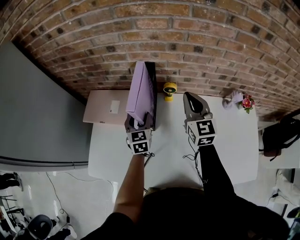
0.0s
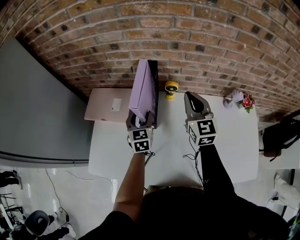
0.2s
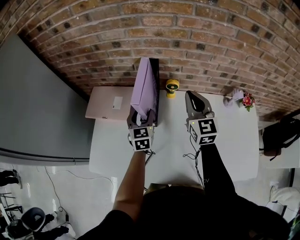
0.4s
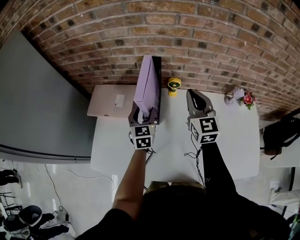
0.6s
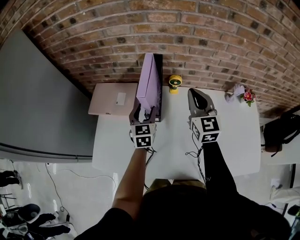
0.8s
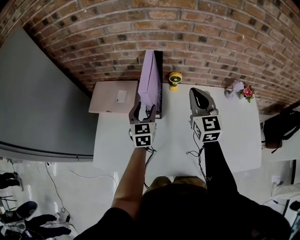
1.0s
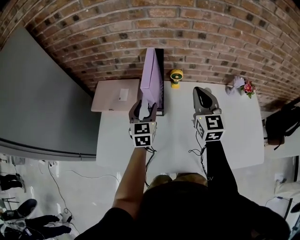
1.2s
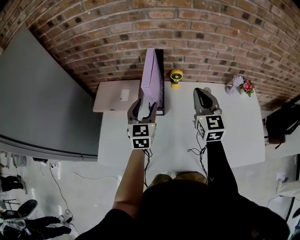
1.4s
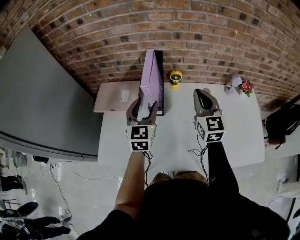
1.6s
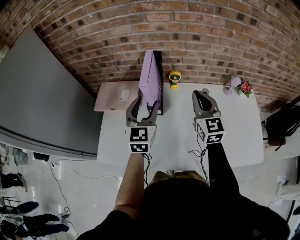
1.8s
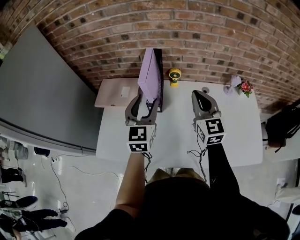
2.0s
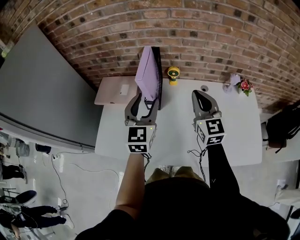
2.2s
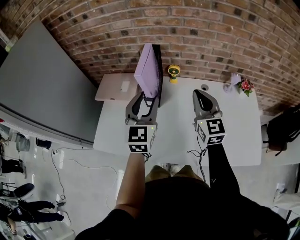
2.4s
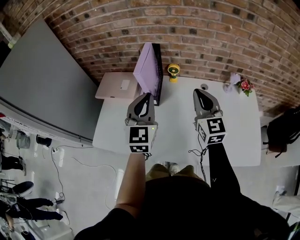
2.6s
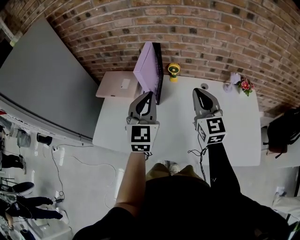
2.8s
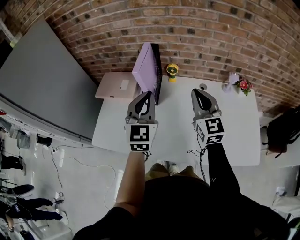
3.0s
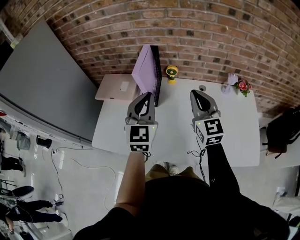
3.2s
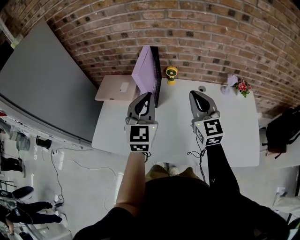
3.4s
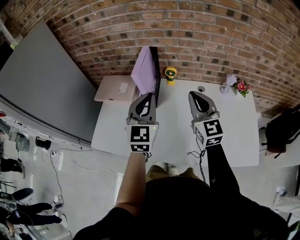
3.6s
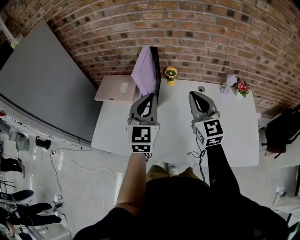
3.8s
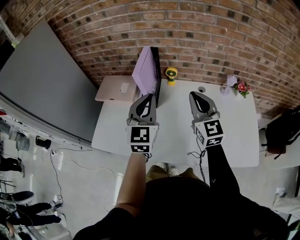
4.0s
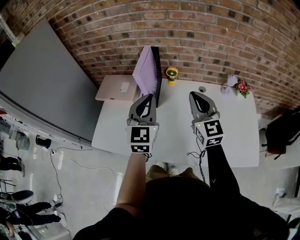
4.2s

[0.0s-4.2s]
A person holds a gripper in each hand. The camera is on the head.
0.0s to 1.4s: The right gripper goes about 10 cm backward. Meanwhile the left gripper goes about 10 cm upward and backward.
1.4s to 2.8s: The left gripper heads backward, upward and to the right, covering some 15 cm, and closes its fingers. Meanwhile the right gripper heads backward, covering roughly 10 cm.
2.8s to 4.2s: The grippers make only small movements.

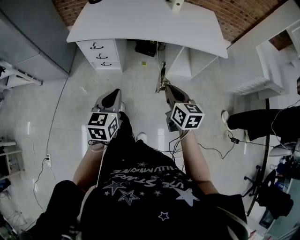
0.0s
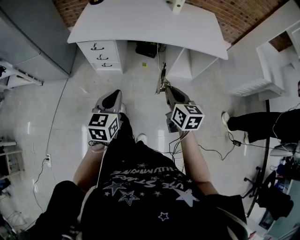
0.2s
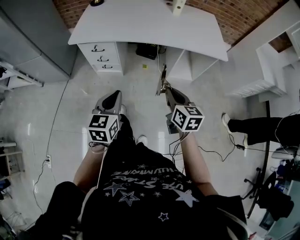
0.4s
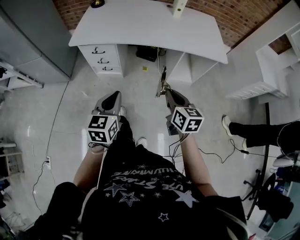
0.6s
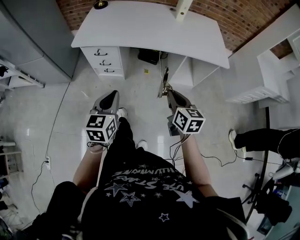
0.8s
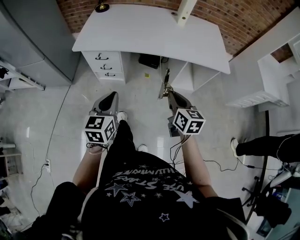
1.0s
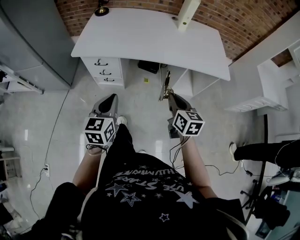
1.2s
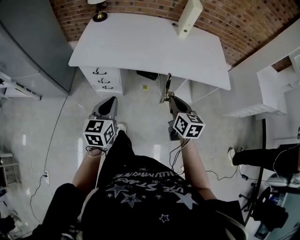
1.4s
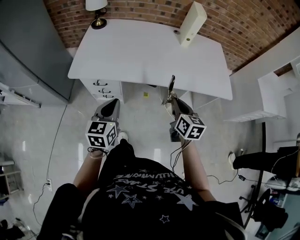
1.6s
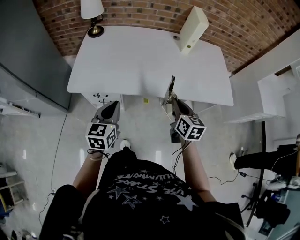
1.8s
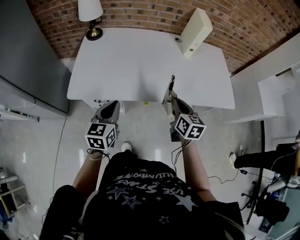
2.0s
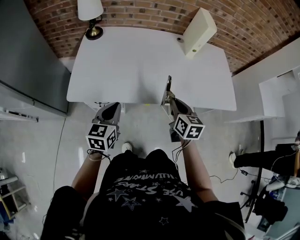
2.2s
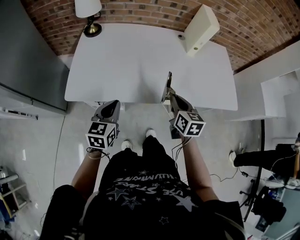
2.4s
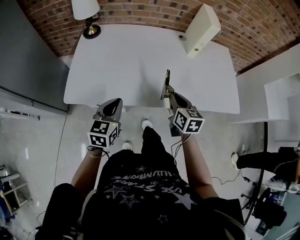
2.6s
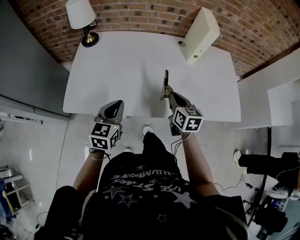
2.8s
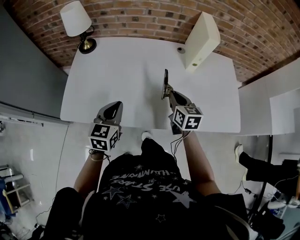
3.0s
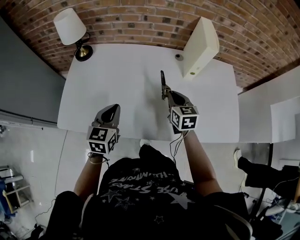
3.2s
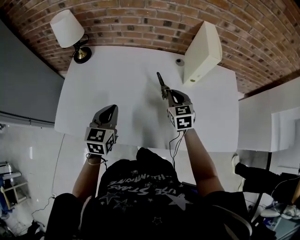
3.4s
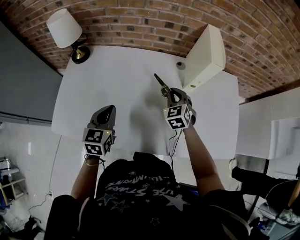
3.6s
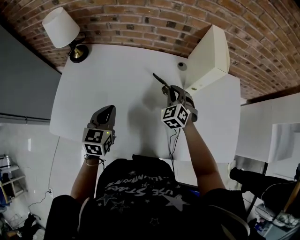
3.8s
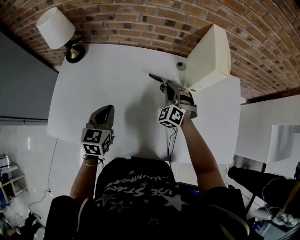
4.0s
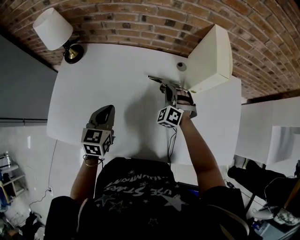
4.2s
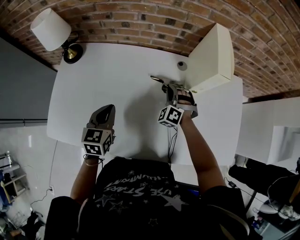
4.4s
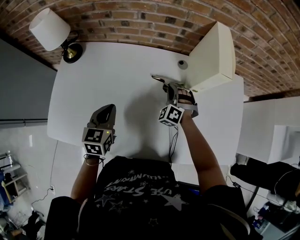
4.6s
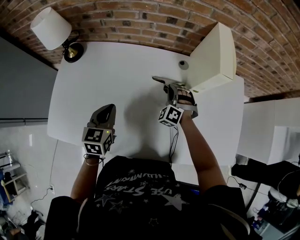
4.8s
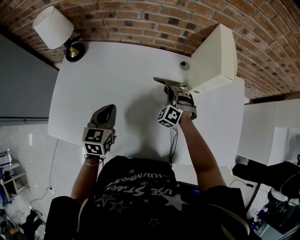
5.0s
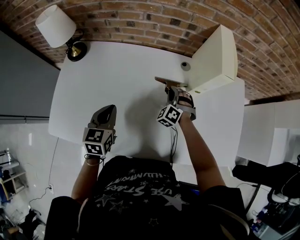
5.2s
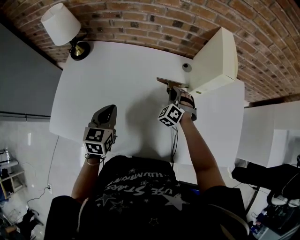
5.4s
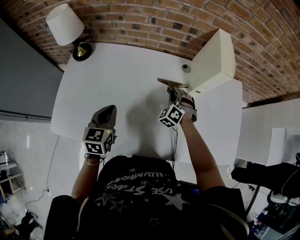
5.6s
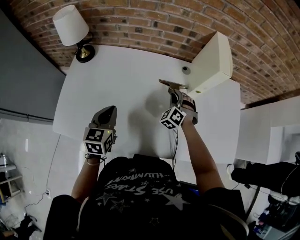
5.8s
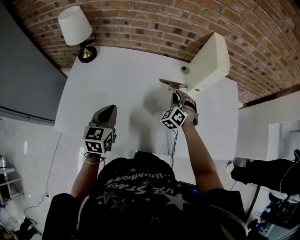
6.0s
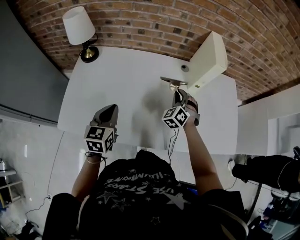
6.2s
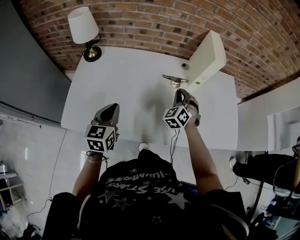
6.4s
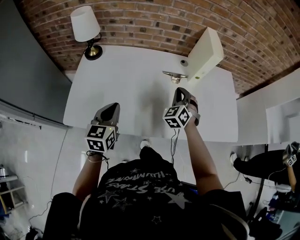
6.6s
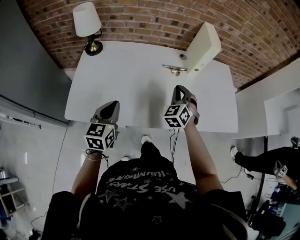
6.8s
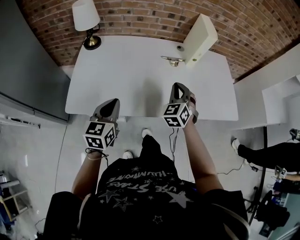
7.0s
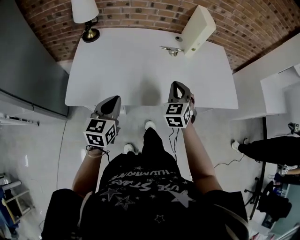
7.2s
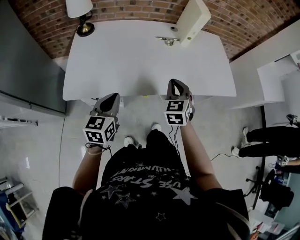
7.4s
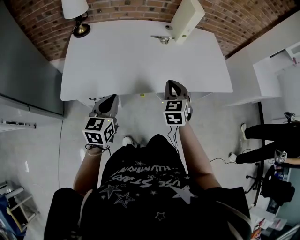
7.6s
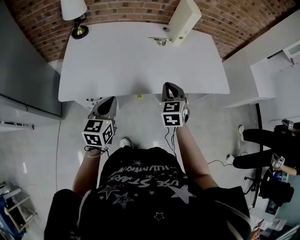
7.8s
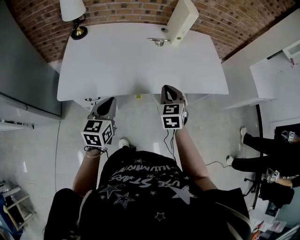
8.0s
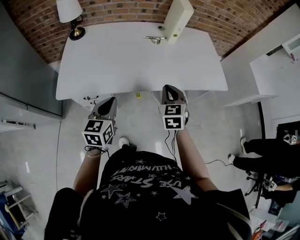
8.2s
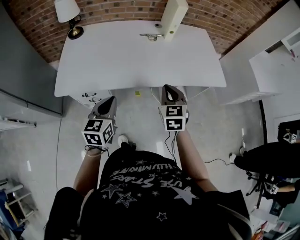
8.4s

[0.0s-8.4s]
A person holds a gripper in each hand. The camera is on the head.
0.0s to 1.4s: The right gripper is displaced forward by about 15 cm; the left gripper travels forward and to the left by roughly 15 cm.
1.4s to 2.8s: Both grippers travel together forward, roughly 30 cm.
2.8s to 4.2s: The grippers both shift forward by approximately 25 cm. The right gripper rolls counterclockwise, seen from behind, by some 80 degrees.
4.2s to 5.6s: The grippers make only small movements.
5.6s to 7.0s: The left gripper travels backward by roughly 20 cm, while the right gripper goes approximately 30 cm backward and upward, and changes its angle by about 30 degrees.
7.0s to 8.4s: The two grippers go roughly 20 cm backward and to the right. The right gripper turns by roughly 30 degrees.

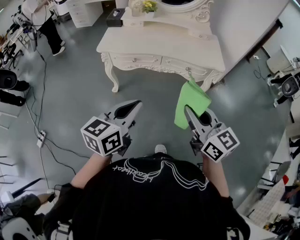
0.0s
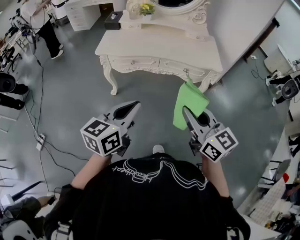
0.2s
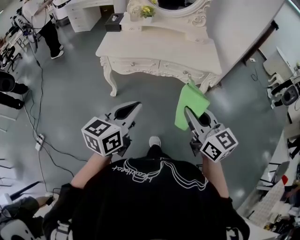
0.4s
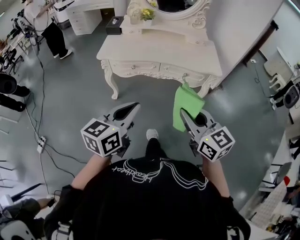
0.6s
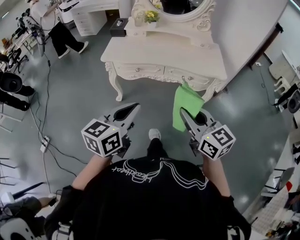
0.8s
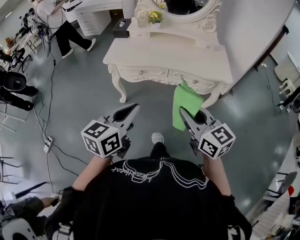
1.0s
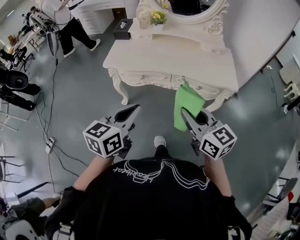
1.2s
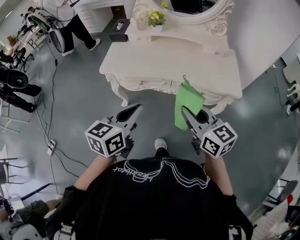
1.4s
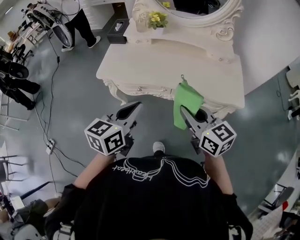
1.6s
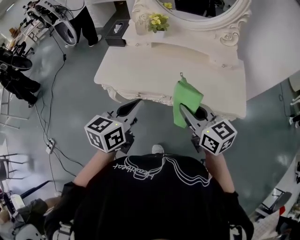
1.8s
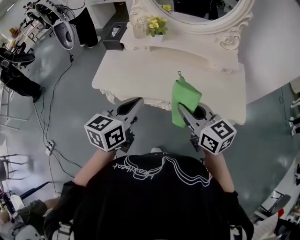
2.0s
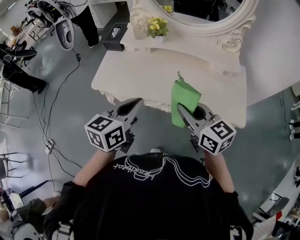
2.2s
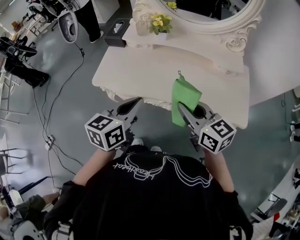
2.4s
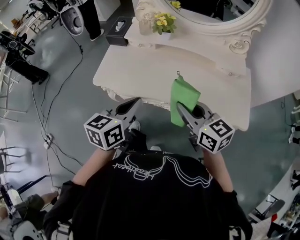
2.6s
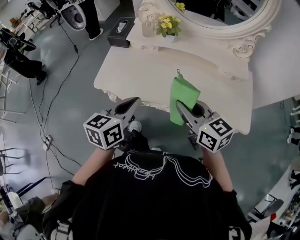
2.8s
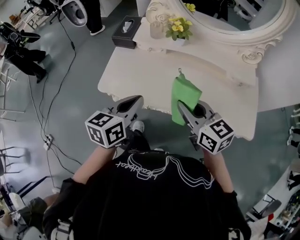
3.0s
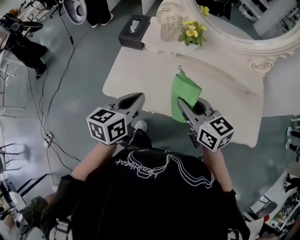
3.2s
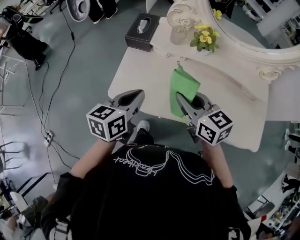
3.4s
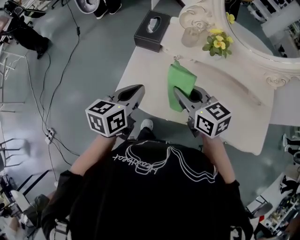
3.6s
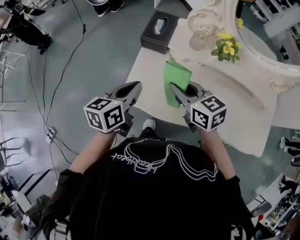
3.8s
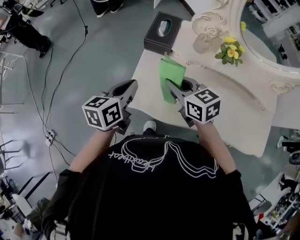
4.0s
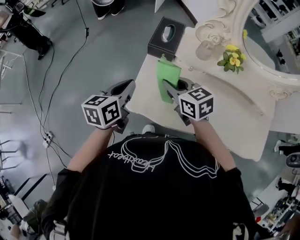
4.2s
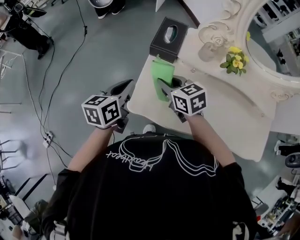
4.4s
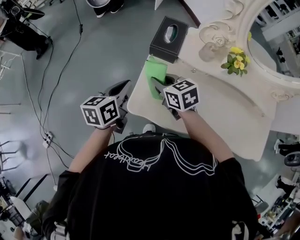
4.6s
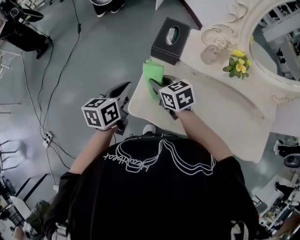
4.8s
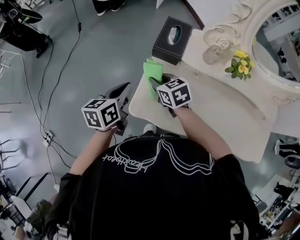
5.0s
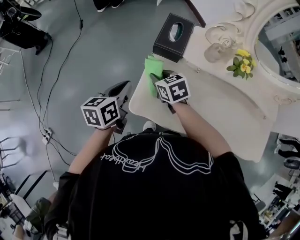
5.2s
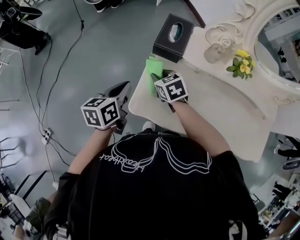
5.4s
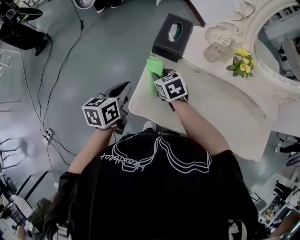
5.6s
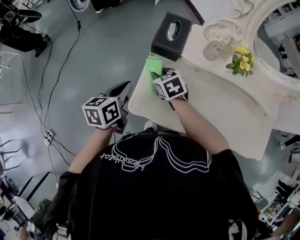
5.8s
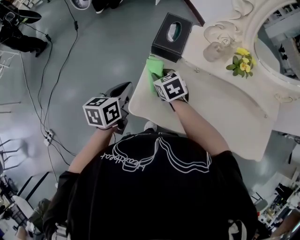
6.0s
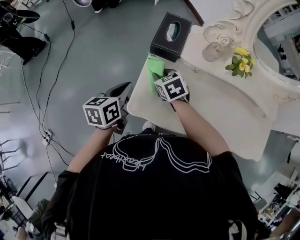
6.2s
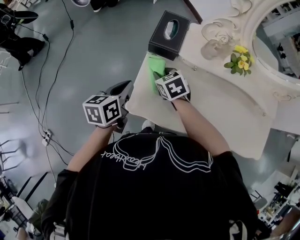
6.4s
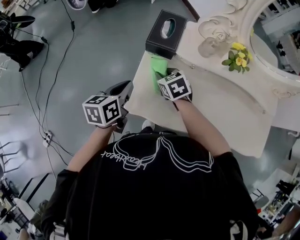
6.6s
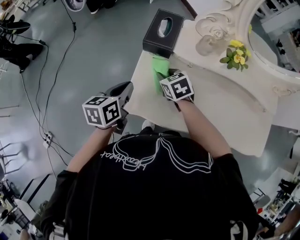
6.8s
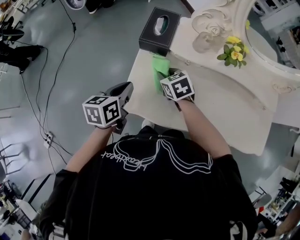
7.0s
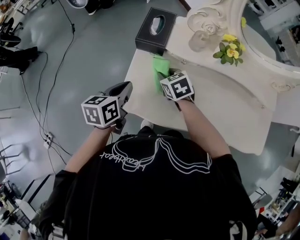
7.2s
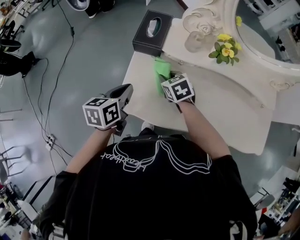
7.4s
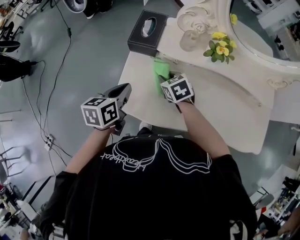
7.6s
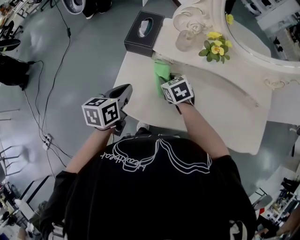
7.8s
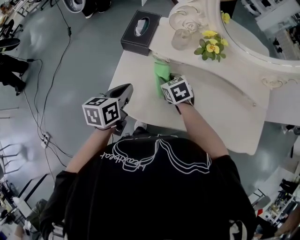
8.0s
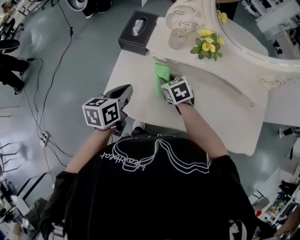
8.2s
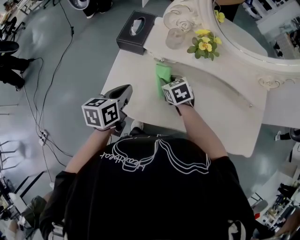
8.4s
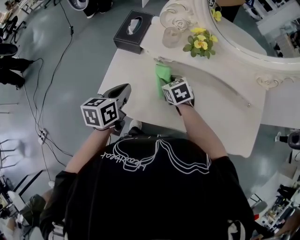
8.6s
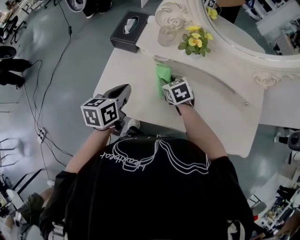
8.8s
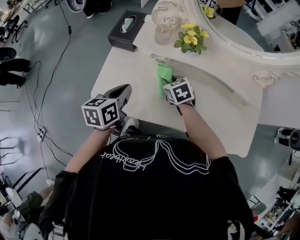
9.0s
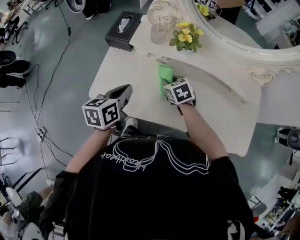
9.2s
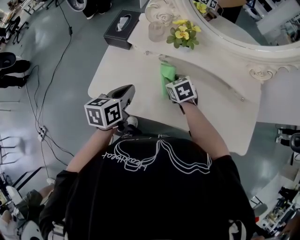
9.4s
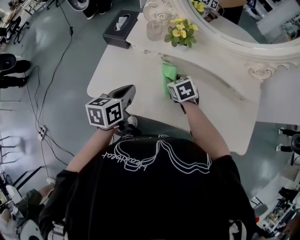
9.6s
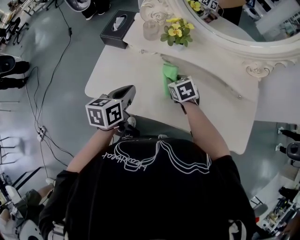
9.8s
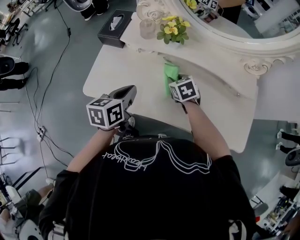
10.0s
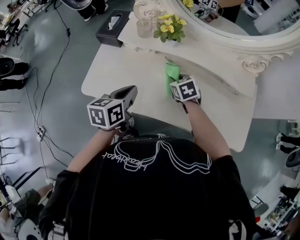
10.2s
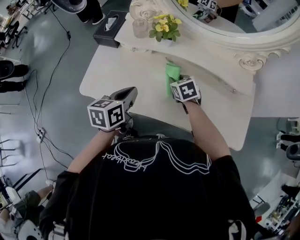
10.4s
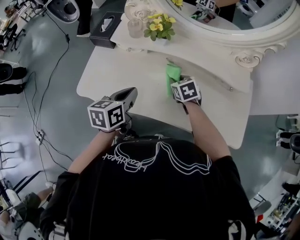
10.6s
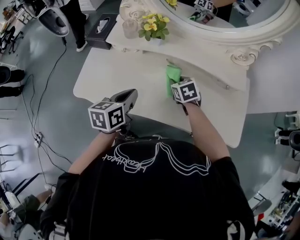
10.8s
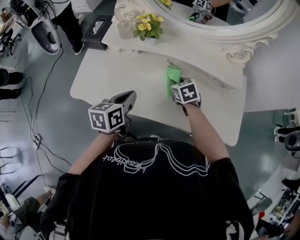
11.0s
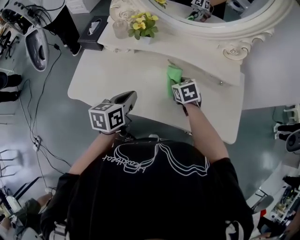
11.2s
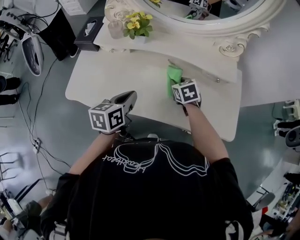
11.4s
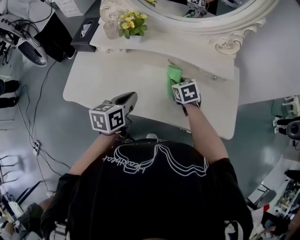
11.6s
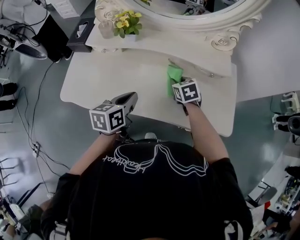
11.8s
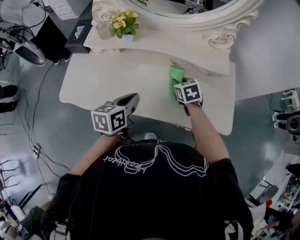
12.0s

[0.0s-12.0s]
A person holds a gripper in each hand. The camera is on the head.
0.0s to 1.6s: The grippers both shift forward by some 25 cm.
1.6s to 3.0s: The grippers both shift forward by about 20 cm.
3.0s to 4.4s: The right gripper moves forward, to the left and downward, some 40 cm. The left gripper heads to the left and forward, covering approximately 30 cm.
4.4s to 6.0s: The right gripper heads downward and forward, covering about 10 cm, while the left gripper changes place by approximately 5 cm.
6.0s to 7.6s: Both grippers travel together to the right, about 10 cm.
7.6s to 9.0s: The left gripper is displaced to the right and backward by about 10 cm. The right gripper heads to the right, covering some 15 cm.
9.0s to 10.4s: The left gripper is displaced to the right and backward by about 10 cm; the right gripper shifts about 15 cm to the right.
10.4s to 12.0s: Both grippers travel together to the right, approximately 15 cm.
